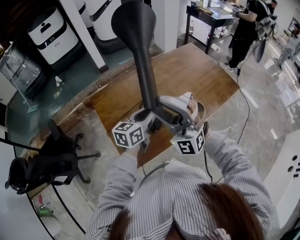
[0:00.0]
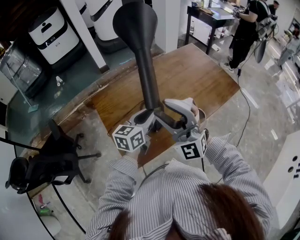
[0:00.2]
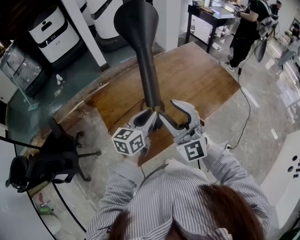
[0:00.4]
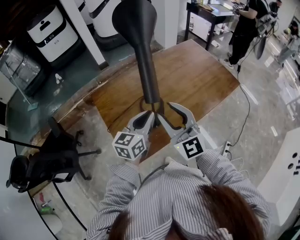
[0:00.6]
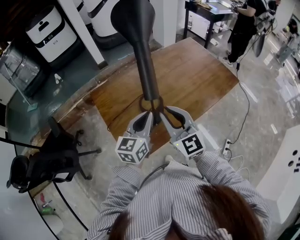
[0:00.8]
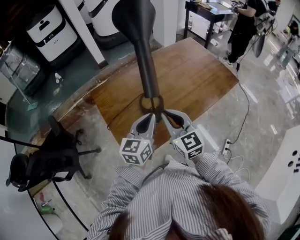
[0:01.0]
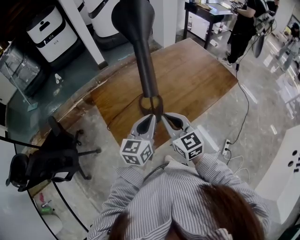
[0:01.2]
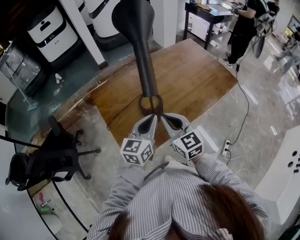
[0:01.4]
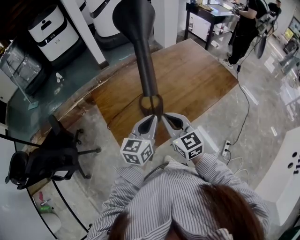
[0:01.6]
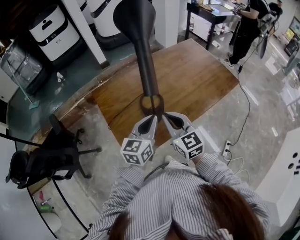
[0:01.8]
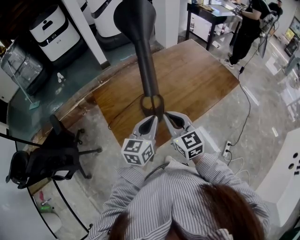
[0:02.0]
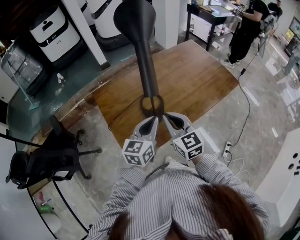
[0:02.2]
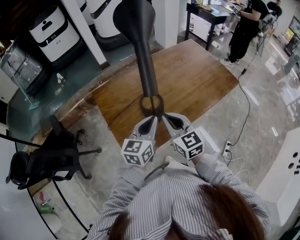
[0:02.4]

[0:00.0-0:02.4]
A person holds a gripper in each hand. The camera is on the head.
0.0 to 1.2 s: The left gripper moves backward, some 10 cm; the right gripper goes approximately 15 cm downward, rolls clockwise, seen from behind, by roughly 70 degrees, and closes its fingers.
1.2 to 2.4 s: Both grippers stay about where they are.

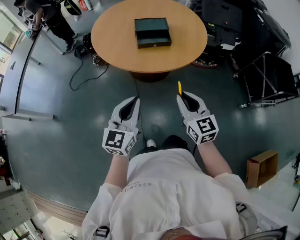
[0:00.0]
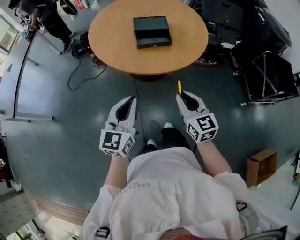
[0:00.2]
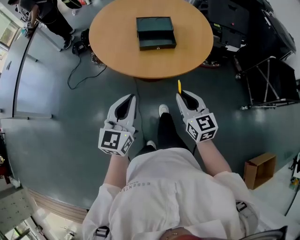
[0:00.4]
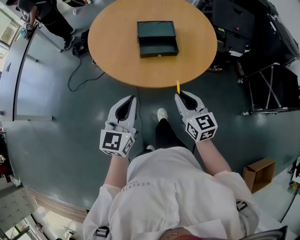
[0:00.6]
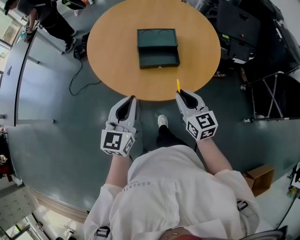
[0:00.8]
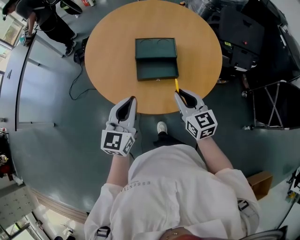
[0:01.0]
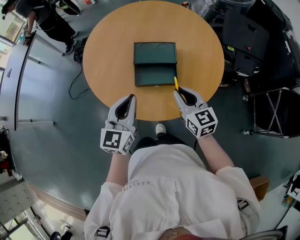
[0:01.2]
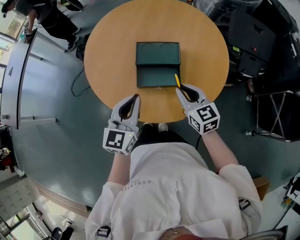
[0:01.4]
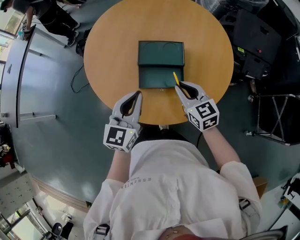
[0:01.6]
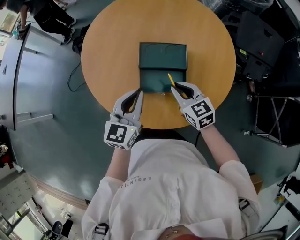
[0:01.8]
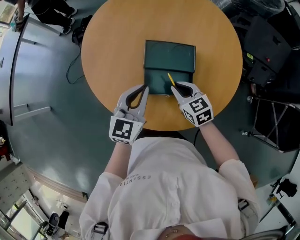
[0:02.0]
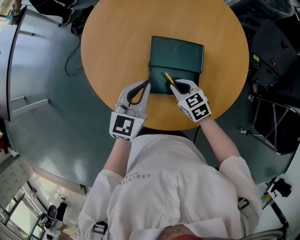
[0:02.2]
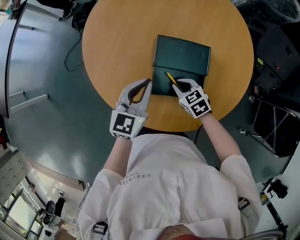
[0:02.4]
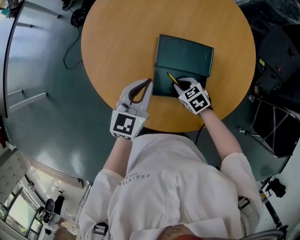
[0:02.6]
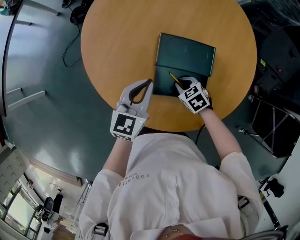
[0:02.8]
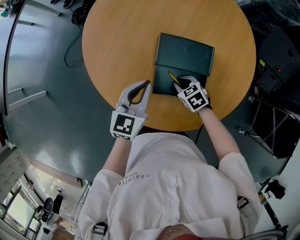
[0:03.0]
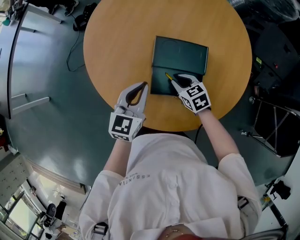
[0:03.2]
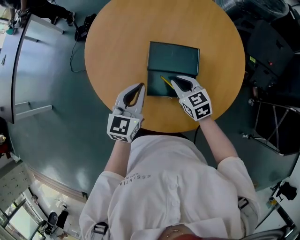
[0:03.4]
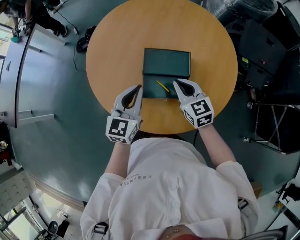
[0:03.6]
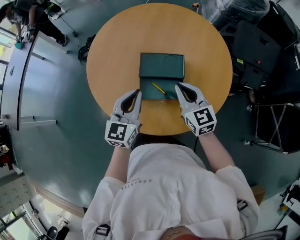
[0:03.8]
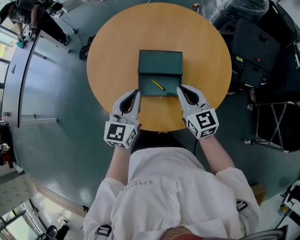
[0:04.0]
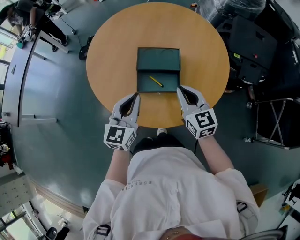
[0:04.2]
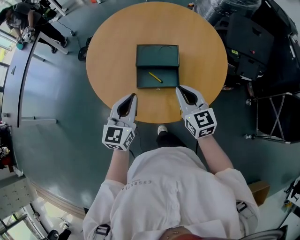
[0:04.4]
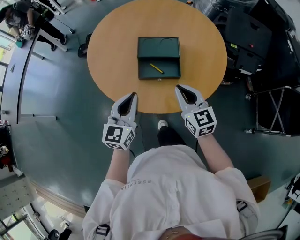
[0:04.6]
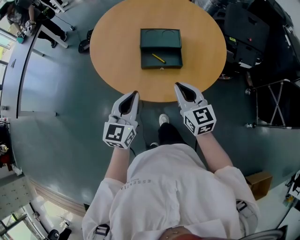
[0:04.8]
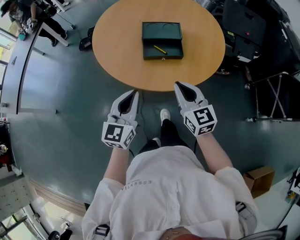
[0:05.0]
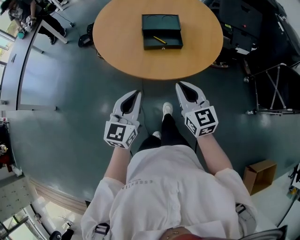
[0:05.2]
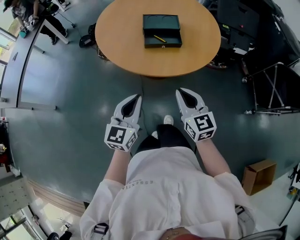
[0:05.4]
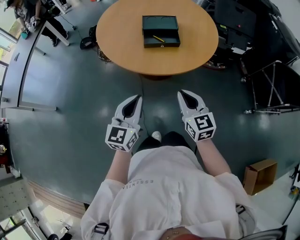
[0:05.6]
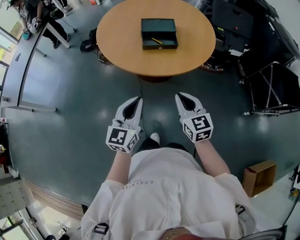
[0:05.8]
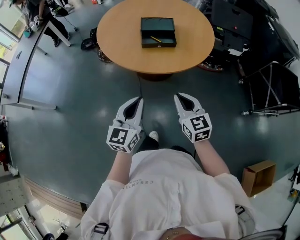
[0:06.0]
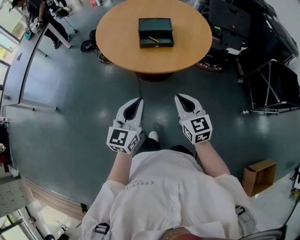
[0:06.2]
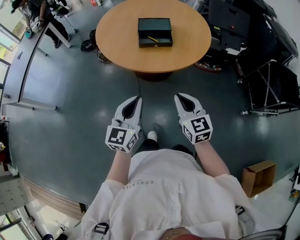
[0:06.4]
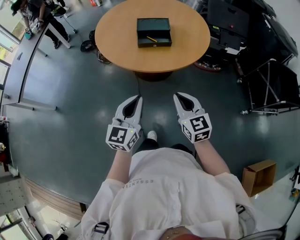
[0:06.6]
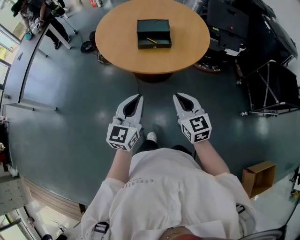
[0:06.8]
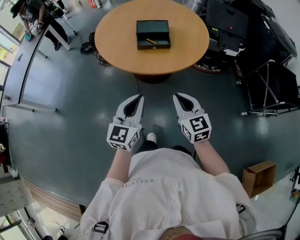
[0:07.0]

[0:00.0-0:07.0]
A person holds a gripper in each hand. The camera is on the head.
0.0 to 1.4 s: Both grippers travel together forward, about 35 cm.
1.4 to 2.8 s: The left gripper goes roughly 20 cm forward and downward. The right gripper heads downward and forward, covering some 25 cm, and points its fingers approximately 40 degrees further downward.
2.8 to 4.2 s: The right gripper shifts some 25 cm upward, and angles its fingers upward, by some 50 degrees; the left gripper goes some 15 cm backward and upward.
4.2 to 5.6 s: Both grippers travel together backward, about 30 cm.
5.6 to 7.0 s: The right gripper travels backward by about 5 cm; the left gripper goes some 5 cm to the right.

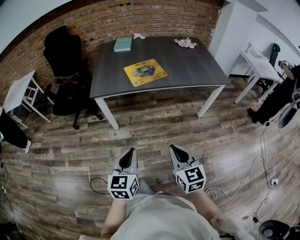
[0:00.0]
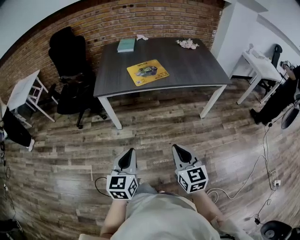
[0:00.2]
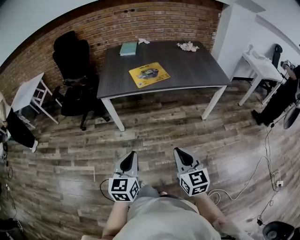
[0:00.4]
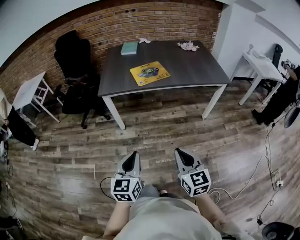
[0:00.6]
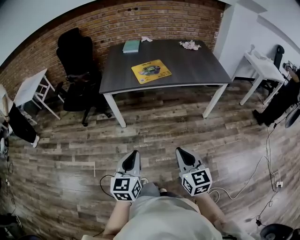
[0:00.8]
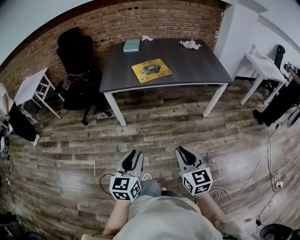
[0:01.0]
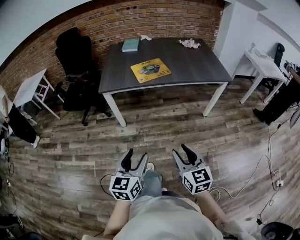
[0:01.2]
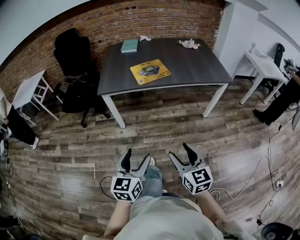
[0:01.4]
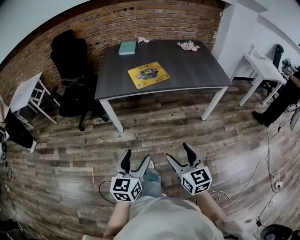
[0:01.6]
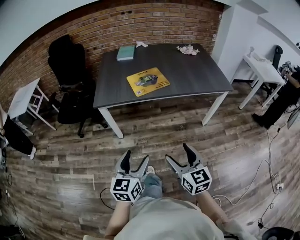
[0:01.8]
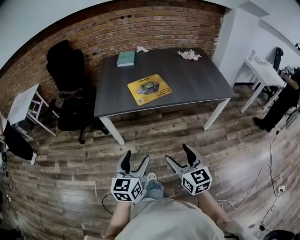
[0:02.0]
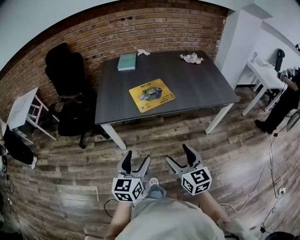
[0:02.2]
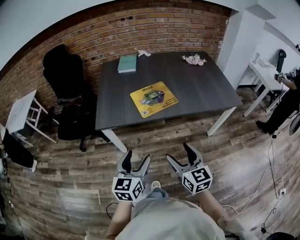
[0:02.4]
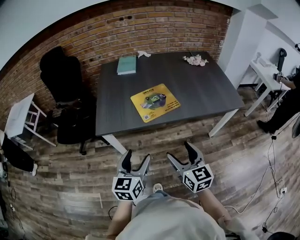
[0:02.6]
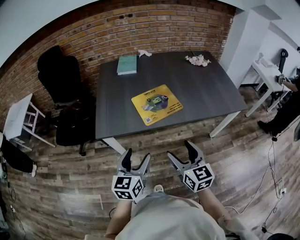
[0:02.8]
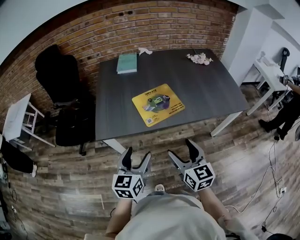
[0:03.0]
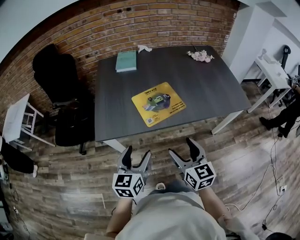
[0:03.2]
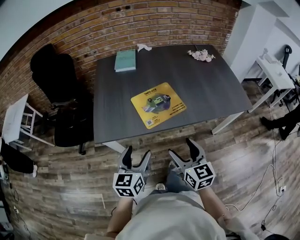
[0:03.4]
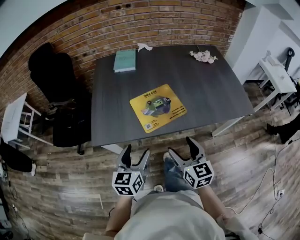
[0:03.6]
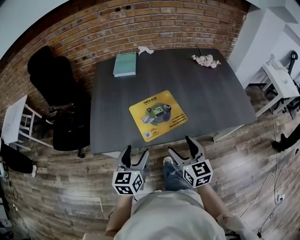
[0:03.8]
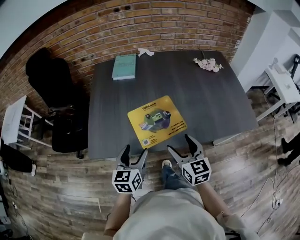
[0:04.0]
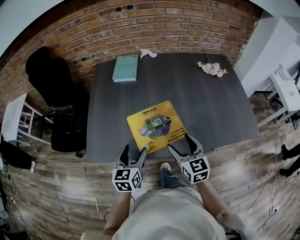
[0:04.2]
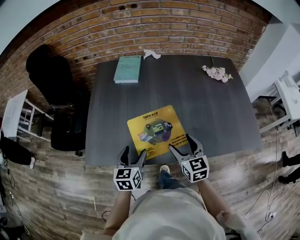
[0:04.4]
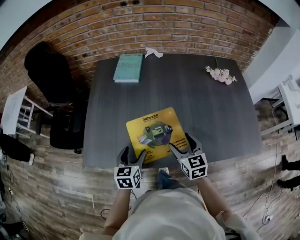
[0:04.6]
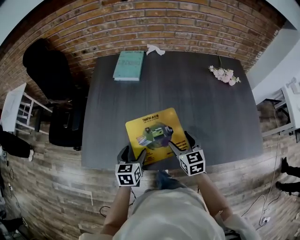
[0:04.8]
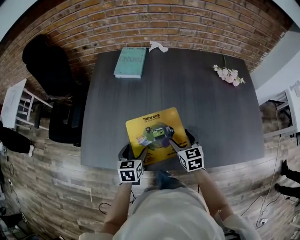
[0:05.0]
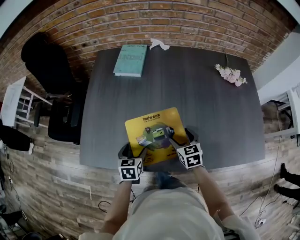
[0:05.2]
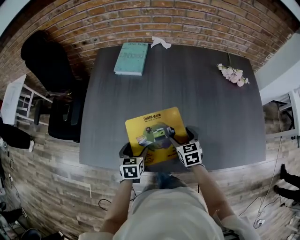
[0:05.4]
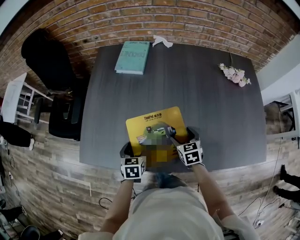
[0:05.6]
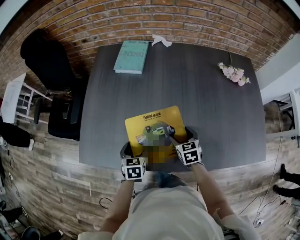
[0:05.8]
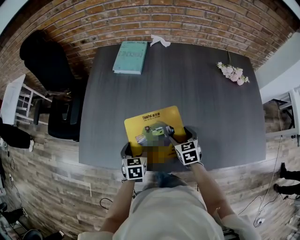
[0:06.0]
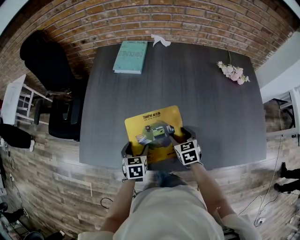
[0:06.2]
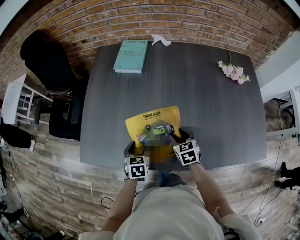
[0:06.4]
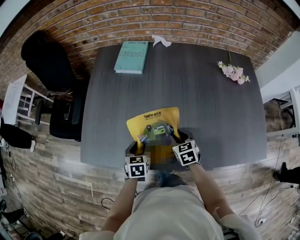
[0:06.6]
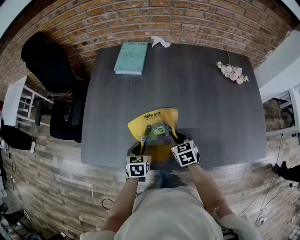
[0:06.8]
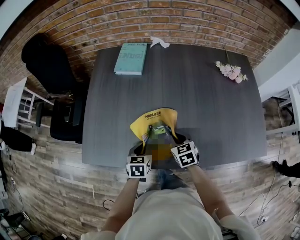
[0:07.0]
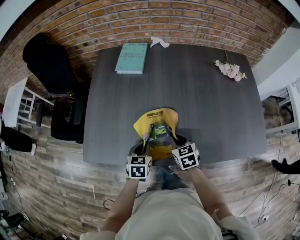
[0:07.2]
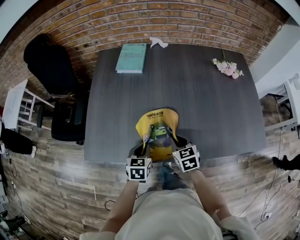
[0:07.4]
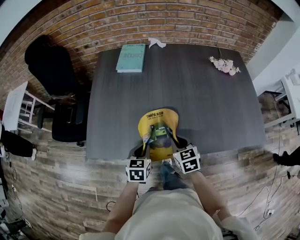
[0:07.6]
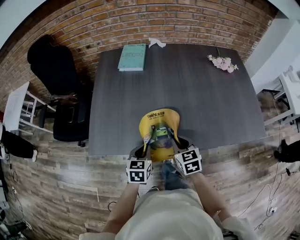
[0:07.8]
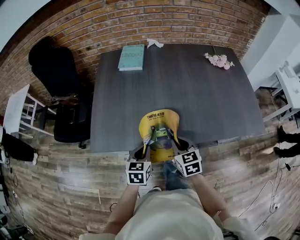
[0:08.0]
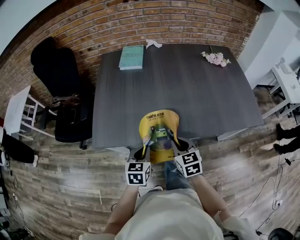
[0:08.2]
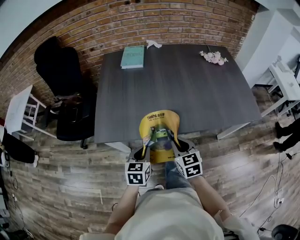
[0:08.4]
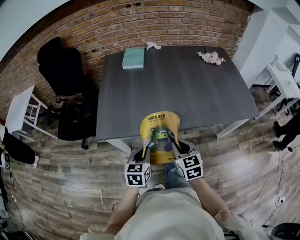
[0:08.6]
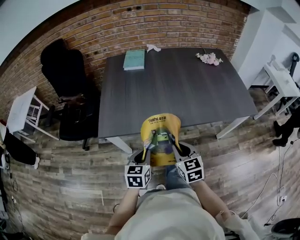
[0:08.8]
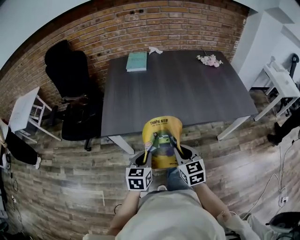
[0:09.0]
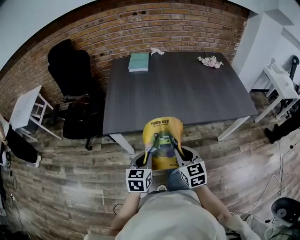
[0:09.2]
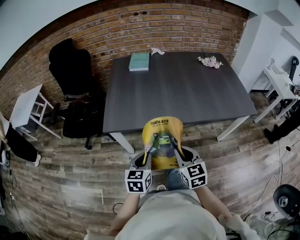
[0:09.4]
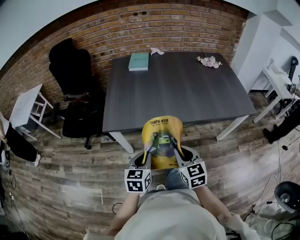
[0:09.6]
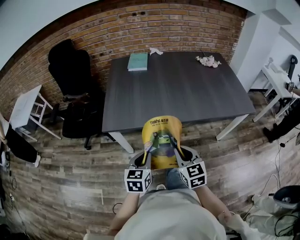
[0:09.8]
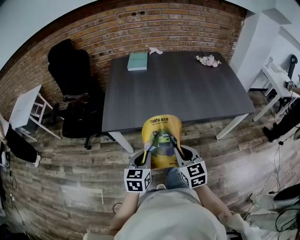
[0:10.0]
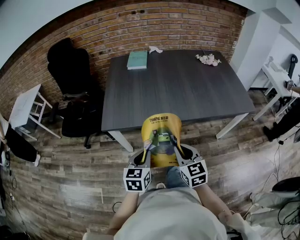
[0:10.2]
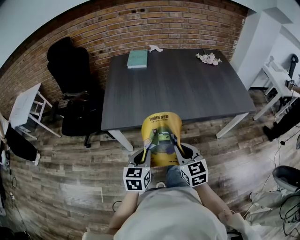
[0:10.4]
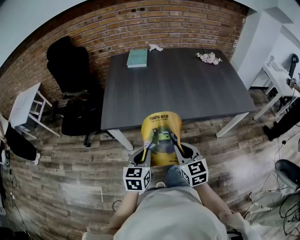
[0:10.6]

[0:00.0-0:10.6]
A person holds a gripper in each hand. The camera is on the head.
0.0 to 1.6 s: The right gripper travels backward and back again, roughly 10 cm each way, and opens its fingers, while the left gripper moves approximately 10 cm backward and comes back, and opens.
1.6 to 3.0 s: Both grippers move forward, approximately 35 cm.
3.0 to 4.6 s: The left gripper is displaced forward and downward by roughly 30 cm, and rotates about 20 degrees; the right gripper travels forward by roughly 30 cm.
4.6 to 6.0 s: The left gripper heads downward, covering about 10 cm; the right gripper moves downward and forward, some 15 cm.
6.0 to 7.6 s: The right gripper is displaced backward, upward and to the left by about 15 cm, and closes up. The left gripper shifts approximately 10 cm backward and upward, and closes up.
7.6 to 9.0 s: The grippers both shift backward by approximately 25 cm.
9.0 to 10.6 s: The grippers move only a little.

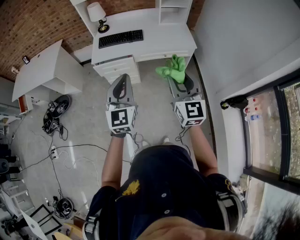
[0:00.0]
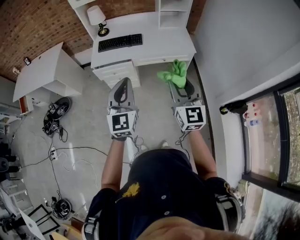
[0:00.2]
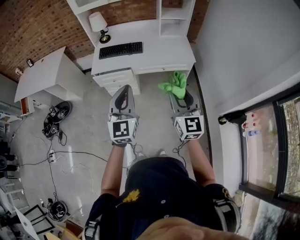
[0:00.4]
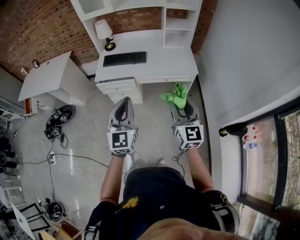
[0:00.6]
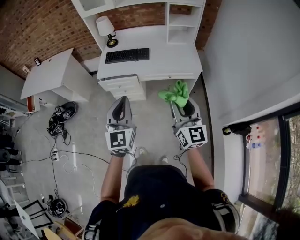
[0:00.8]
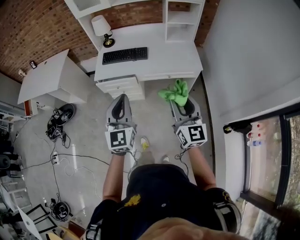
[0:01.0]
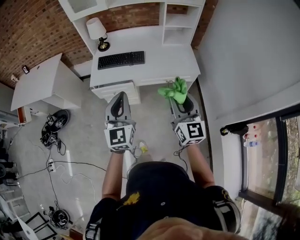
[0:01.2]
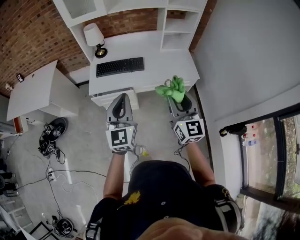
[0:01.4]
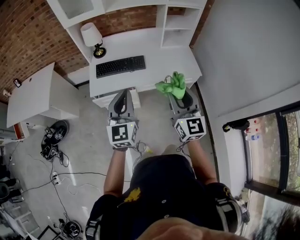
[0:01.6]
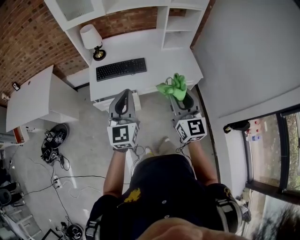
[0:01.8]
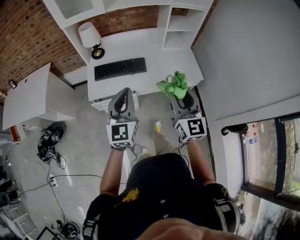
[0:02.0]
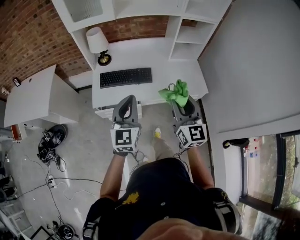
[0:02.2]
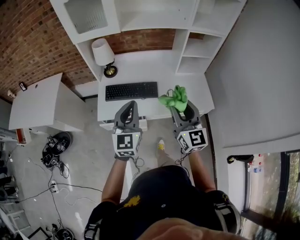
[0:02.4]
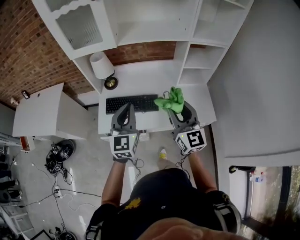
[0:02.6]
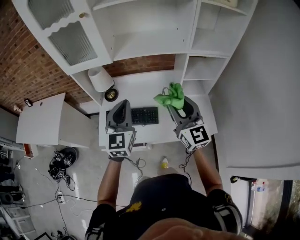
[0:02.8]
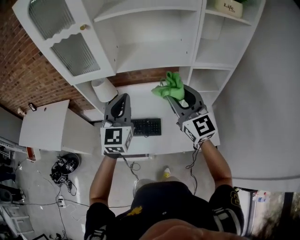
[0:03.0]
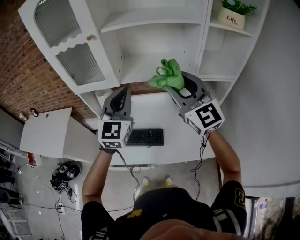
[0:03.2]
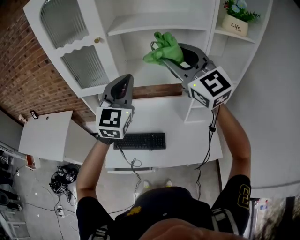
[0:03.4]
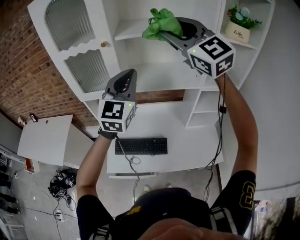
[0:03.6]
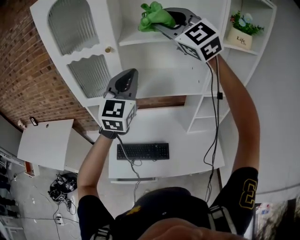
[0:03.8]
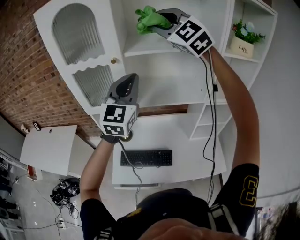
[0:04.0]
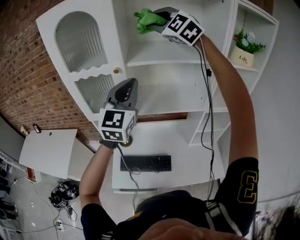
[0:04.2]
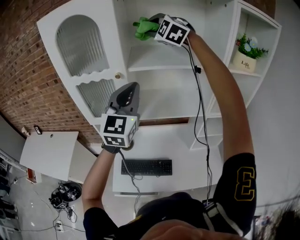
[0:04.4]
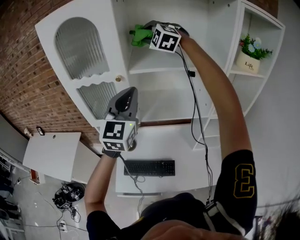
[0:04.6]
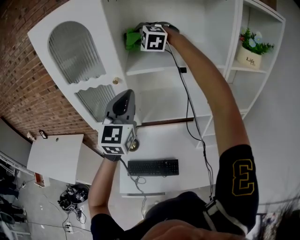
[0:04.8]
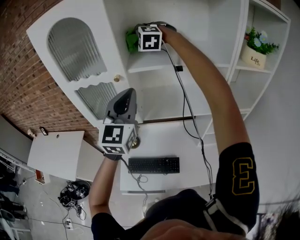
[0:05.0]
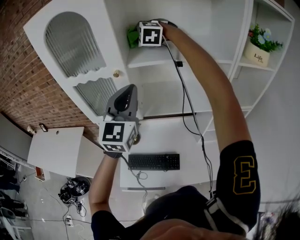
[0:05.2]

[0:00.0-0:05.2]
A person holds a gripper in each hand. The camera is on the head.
0.0 to 1.8 s: Both grippers move forward, approximately 25 cm.
1.8 to 3.4 s: The two grippers travel together, forward, some 40 cm. Both grippers move upward, approximately 25 cm. The right gripper swivels approximately 40 degrees.
3.4 to 5.2 s: The left gripper is displaced forward, upward and to the left by roughly 15 cm. Meanwhile the right gripper heads forward and to the left, covering roughly 40 cm, and points its fingers about 40 degrees further downward.
